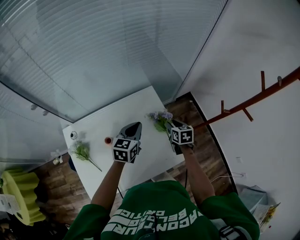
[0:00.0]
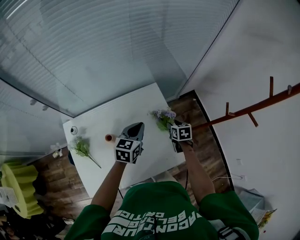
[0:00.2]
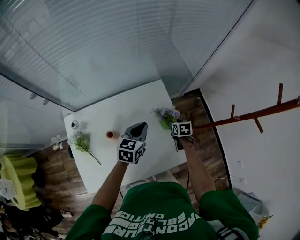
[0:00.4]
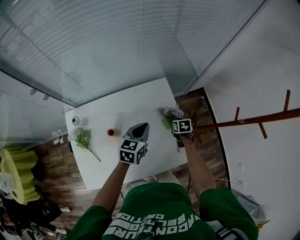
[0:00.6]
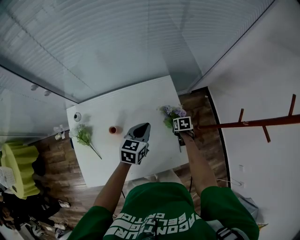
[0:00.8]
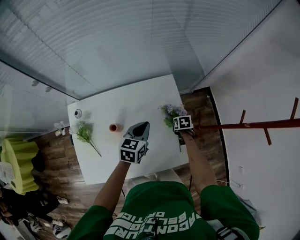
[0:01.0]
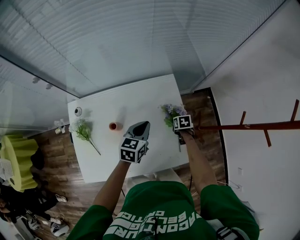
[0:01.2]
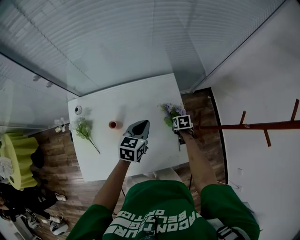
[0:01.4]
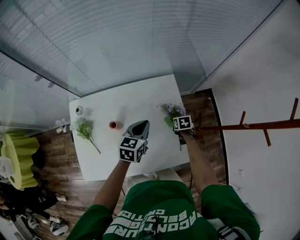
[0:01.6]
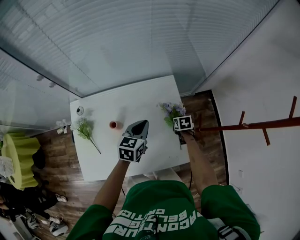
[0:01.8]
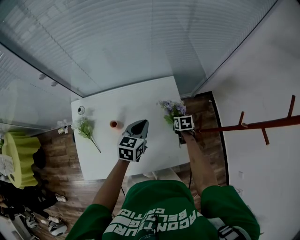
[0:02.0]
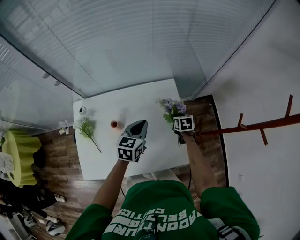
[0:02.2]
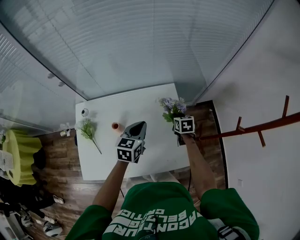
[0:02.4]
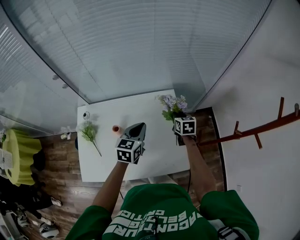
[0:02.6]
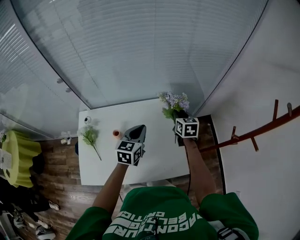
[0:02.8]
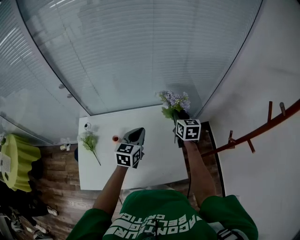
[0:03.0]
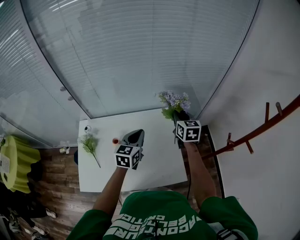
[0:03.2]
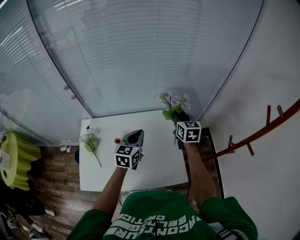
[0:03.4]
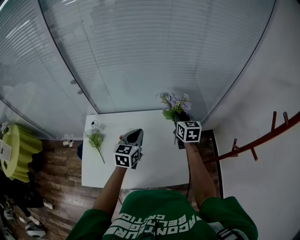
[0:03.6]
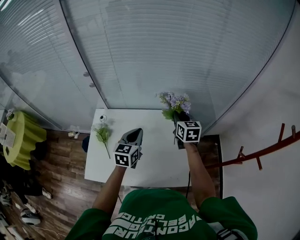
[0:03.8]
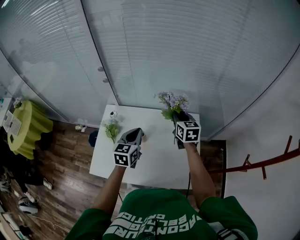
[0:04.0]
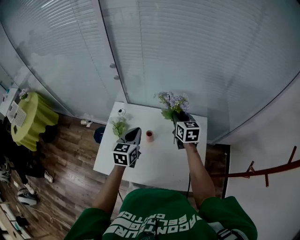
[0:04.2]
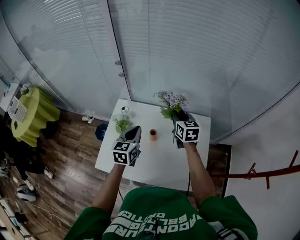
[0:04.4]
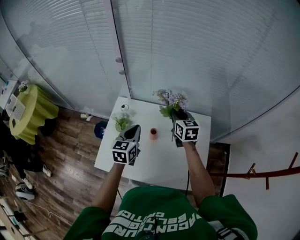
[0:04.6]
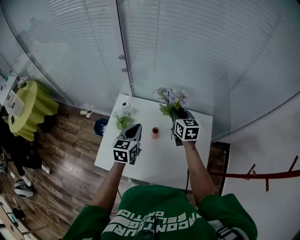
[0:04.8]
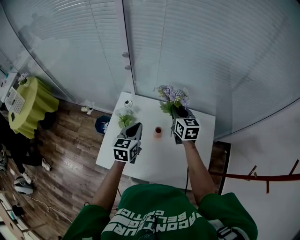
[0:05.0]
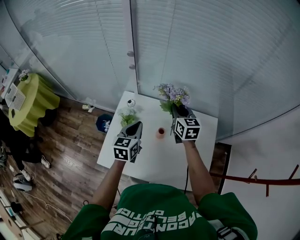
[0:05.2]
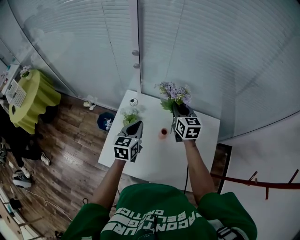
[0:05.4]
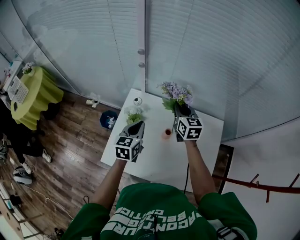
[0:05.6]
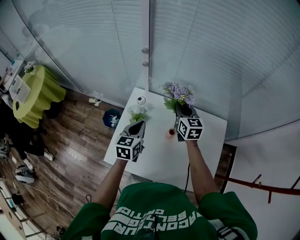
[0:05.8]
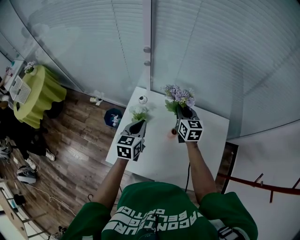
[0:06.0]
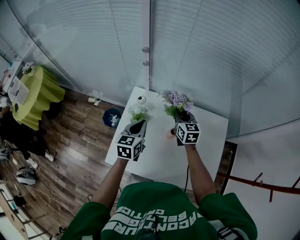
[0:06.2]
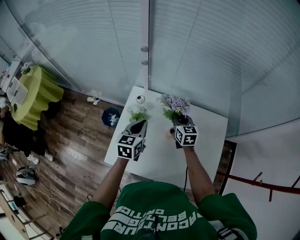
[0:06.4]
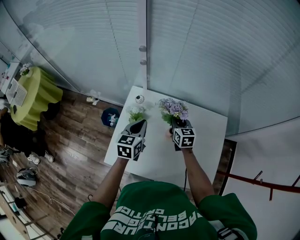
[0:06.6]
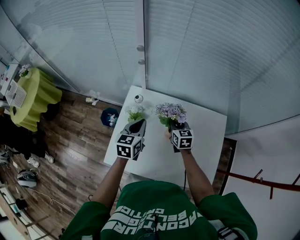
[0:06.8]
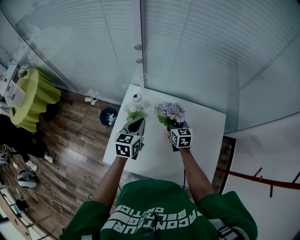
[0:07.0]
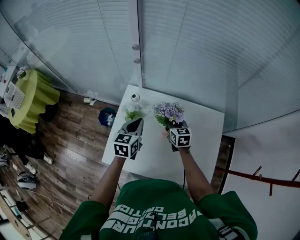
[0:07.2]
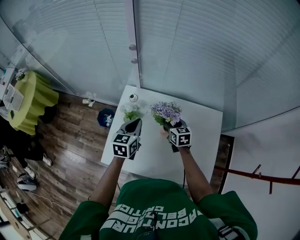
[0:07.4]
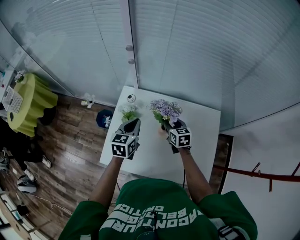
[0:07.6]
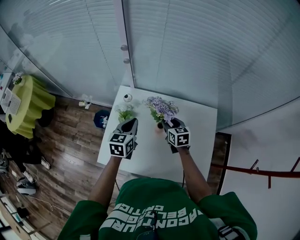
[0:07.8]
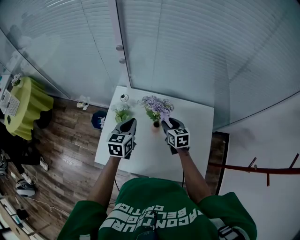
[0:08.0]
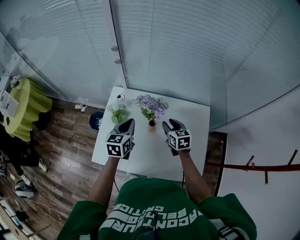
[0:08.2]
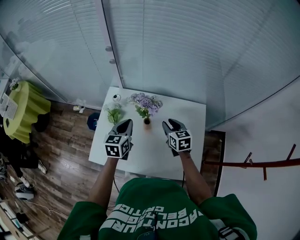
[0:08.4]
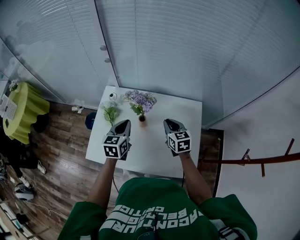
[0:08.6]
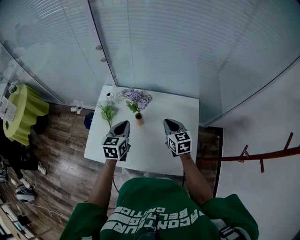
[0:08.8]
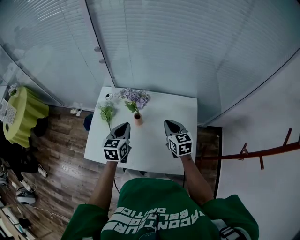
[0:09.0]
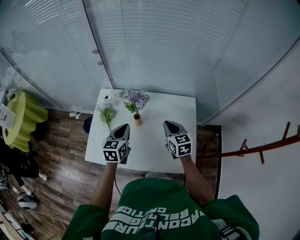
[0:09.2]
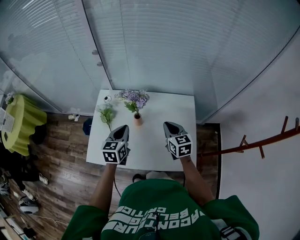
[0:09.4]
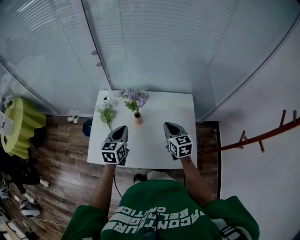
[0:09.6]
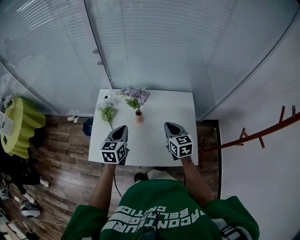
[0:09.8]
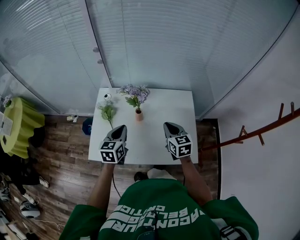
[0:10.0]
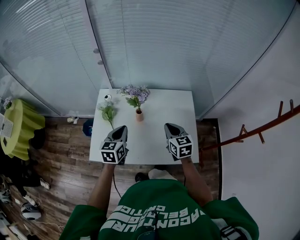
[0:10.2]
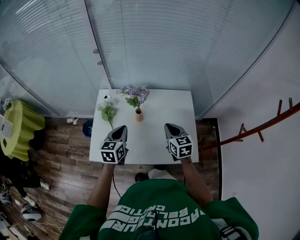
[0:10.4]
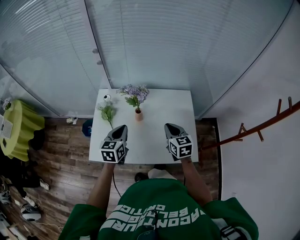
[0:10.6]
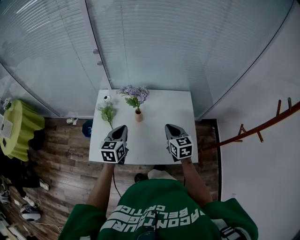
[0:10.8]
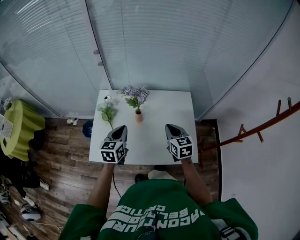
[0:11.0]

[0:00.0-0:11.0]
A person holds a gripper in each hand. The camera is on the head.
0:00.0 to 0:01.6: The right gripper shifts approximately 15 cm downward, and rotates some 20 degrees. Meanwhile the left gripper heads downward, covering about 5 cm.
0:01.6 to 0:03.2: The right gripper heads upward, covering roughly 35 cm, and angles its fingers upward, by approximately 40 degrees. The left gripper shifts approximately 10 cm upward.
0:03.2 to 0:04.8: Both grippers move to the left, some 30 cm. The left gripper swivels about 20 degrees. The right gripper rotates some 20 degrees.
0:04.8 to 0:06.2: The right gripper moves to the left and downward, approximately 10 cm, while the left gripper heads to the left, covering roughly 10 cm.
0:06.2 to 0:07.8: The right gripper travels backward and downward by roughly 10 cm, and opens.
0:07.8 to 0:09.4: The right gripper travels backward, to the right and upward by approximately 20 cm, and closes up, while the left gripper travels backward and to the right by roughly 15 cm.
0:09.4 to 0:11.0: The right gripper travels backward by some 5 cm.

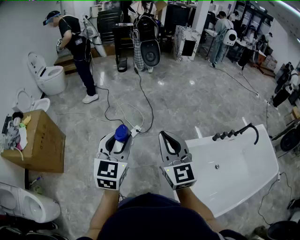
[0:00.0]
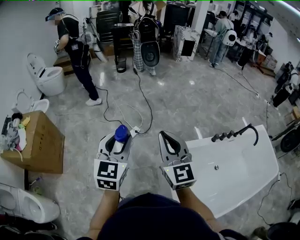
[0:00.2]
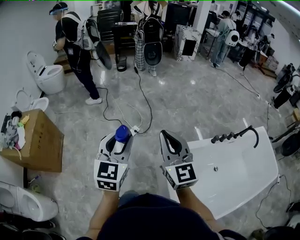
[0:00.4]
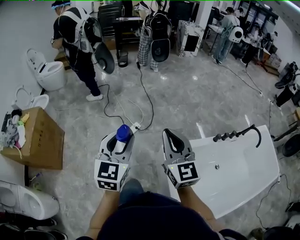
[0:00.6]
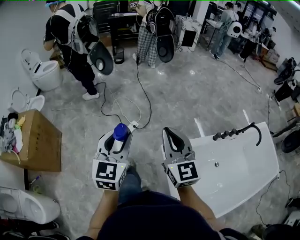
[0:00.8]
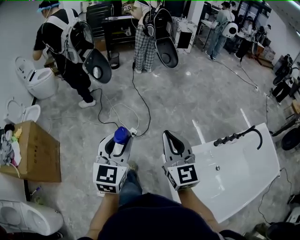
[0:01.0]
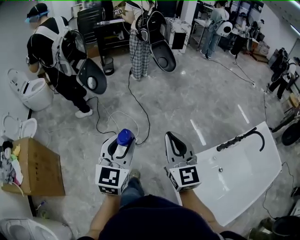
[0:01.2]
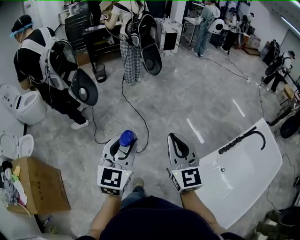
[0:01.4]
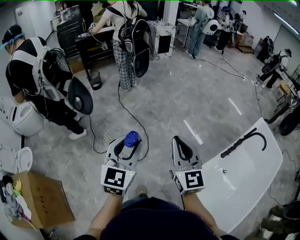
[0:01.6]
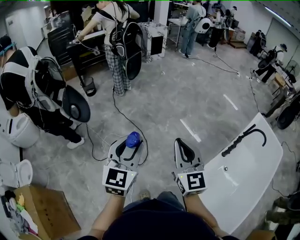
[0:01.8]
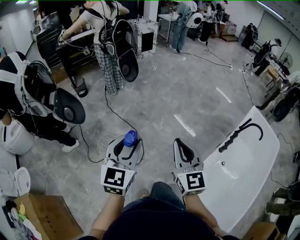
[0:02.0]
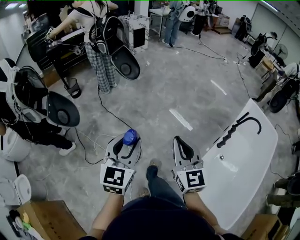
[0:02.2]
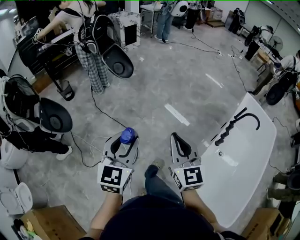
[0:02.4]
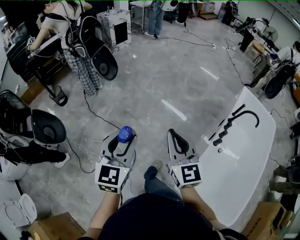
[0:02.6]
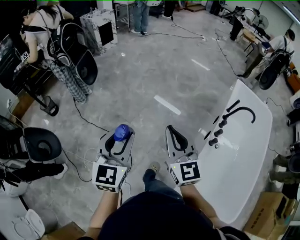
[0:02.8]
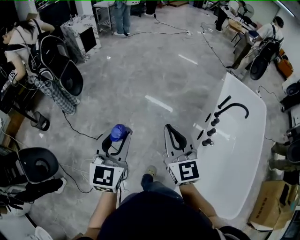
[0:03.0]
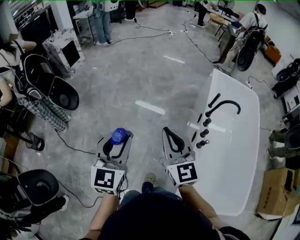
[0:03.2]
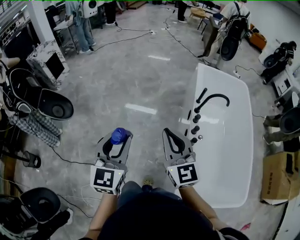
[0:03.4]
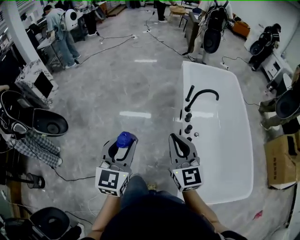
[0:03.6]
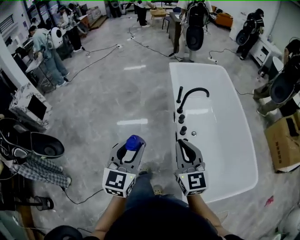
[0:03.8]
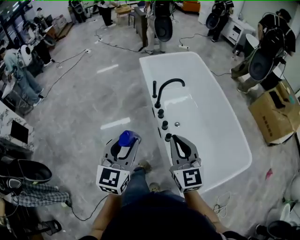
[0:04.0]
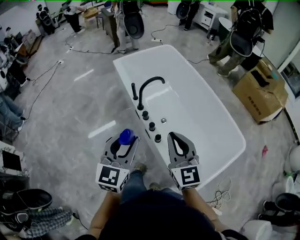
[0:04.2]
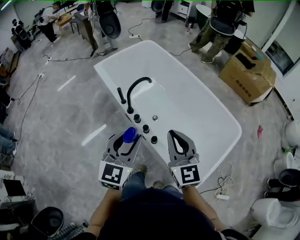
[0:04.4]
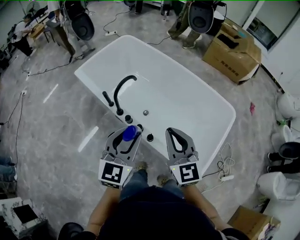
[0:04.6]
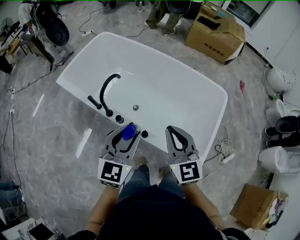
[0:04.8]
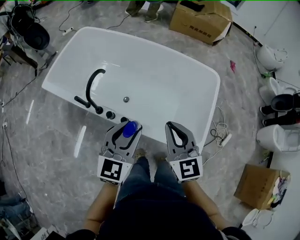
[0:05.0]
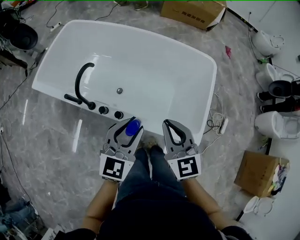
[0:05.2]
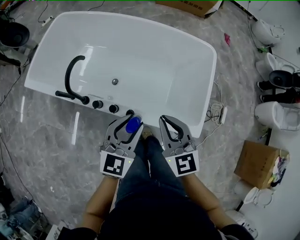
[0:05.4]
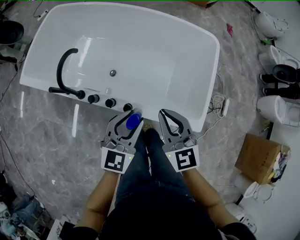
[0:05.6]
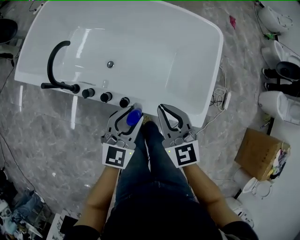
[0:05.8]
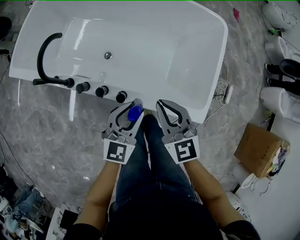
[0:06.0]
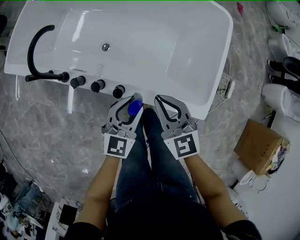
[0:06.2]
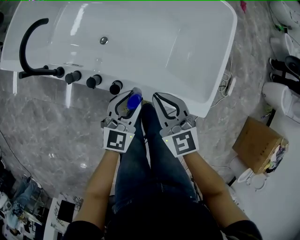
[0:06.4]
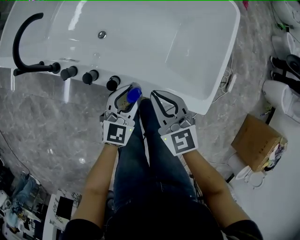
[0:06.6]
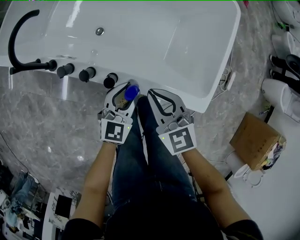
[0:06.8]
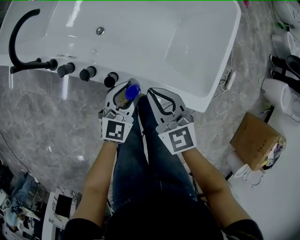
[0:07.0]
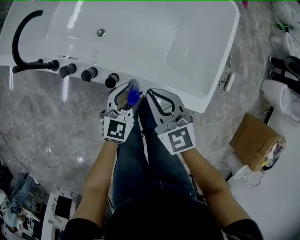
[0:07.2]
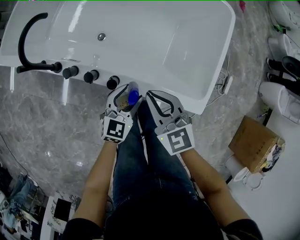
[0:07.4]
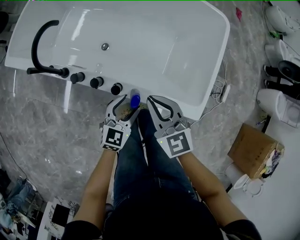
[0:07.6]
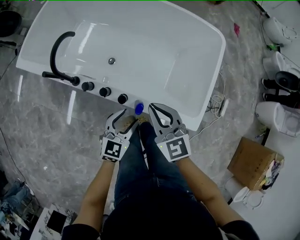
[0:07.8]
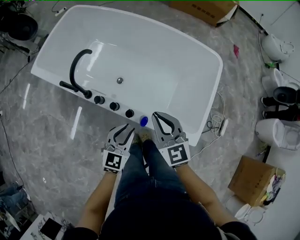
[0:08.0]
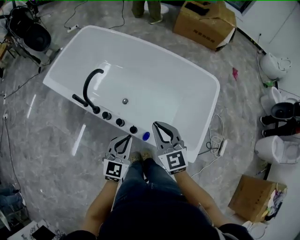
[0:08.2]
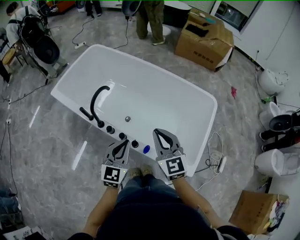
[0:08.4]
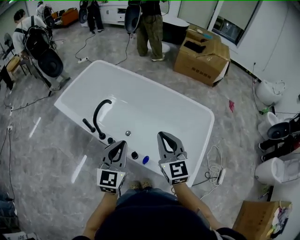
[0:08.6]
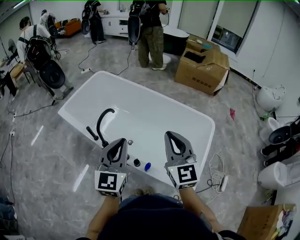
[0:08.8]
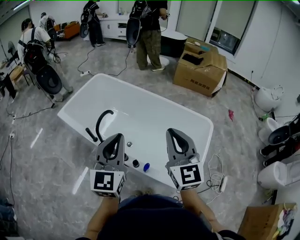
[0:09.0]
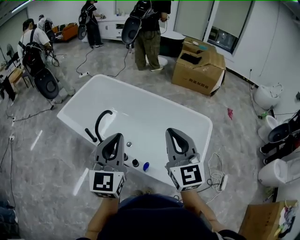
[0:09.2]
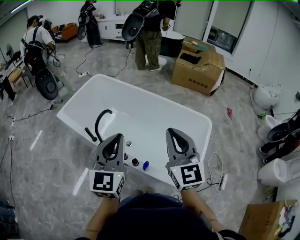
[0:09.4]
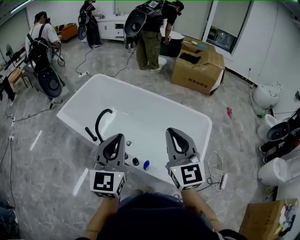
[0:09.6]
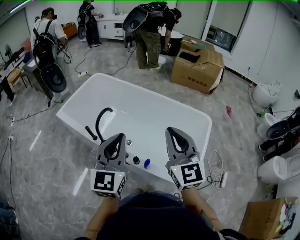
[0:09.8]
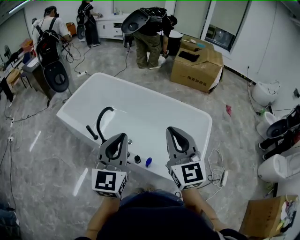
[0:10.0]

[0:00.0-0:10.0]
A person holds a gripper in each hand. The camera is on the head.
0:00.0 to 0:01.4: Both grippers move forward, roughly 30 cm.
0:01.4 to 0:02.8: The left gripper moves about 35 cm, and swivels roughly 30 degrees. Meanwhile the right gripper changes place by approximately 30 cm, and swivels some 30 degrees.
0:02.8 to 0:04.2: Both grippers are carried about 40 cm. The right gripper rotates roughly 70 degrees. Meanwhile the left gripper rotates about 70 degrees.
0:04.2 to 0:05.8: The two grippers go approximately 20 cm downward. The left gripper turns by approximately 60 degrees. The right gripper turns by some 40 degrees.
0:05.8 to 0:07.2: Both grippers travel together downward, approximately 15 cm.
0:07.2 to 0:08.6: Both grippers move upward, roughly 35 cm. The left gripper turns by approximately 30 degrees, and closes. The right gripper turns by approximately 30 degrees.
0:08.6 to 0:10.0: The right gripper is displaced upward and backward by about 15 cm. The left gripper moves upward, about 10 cm.

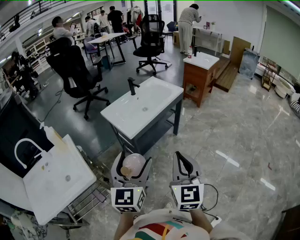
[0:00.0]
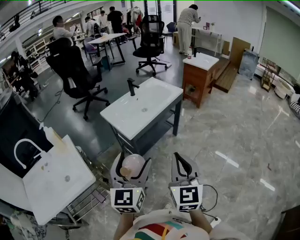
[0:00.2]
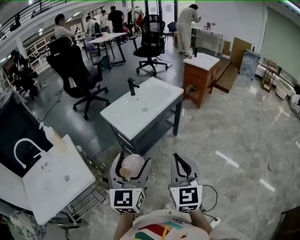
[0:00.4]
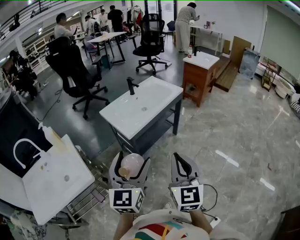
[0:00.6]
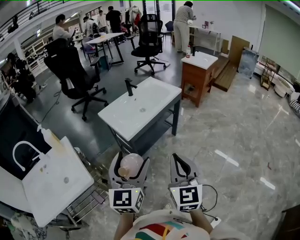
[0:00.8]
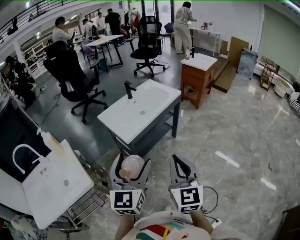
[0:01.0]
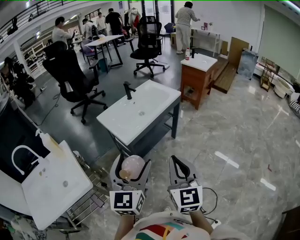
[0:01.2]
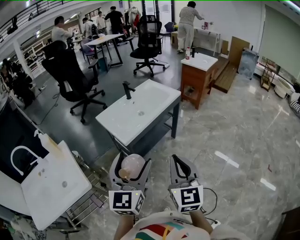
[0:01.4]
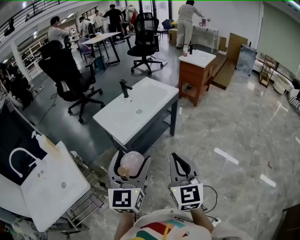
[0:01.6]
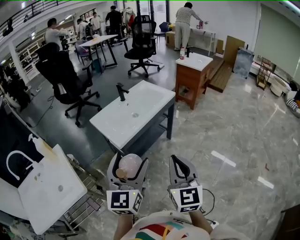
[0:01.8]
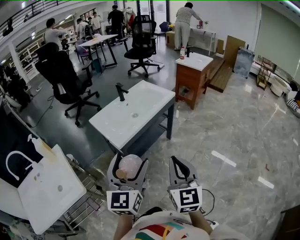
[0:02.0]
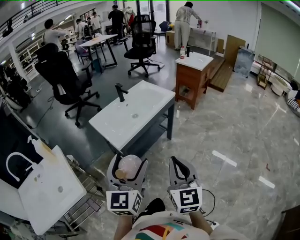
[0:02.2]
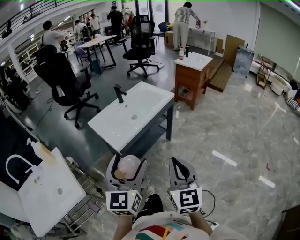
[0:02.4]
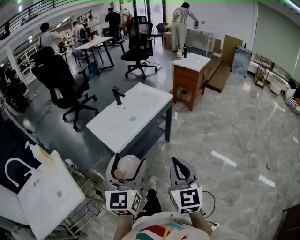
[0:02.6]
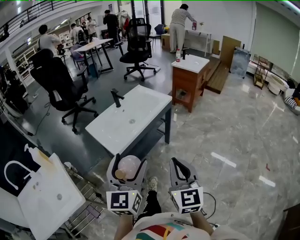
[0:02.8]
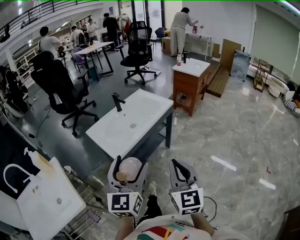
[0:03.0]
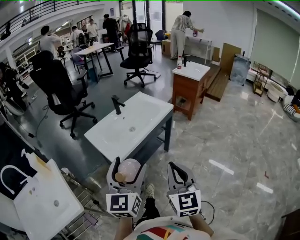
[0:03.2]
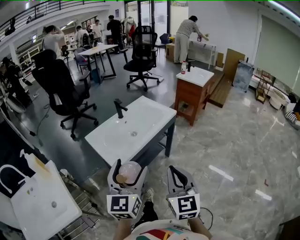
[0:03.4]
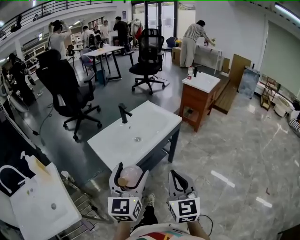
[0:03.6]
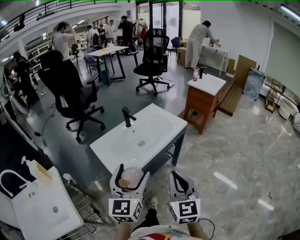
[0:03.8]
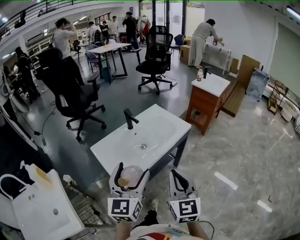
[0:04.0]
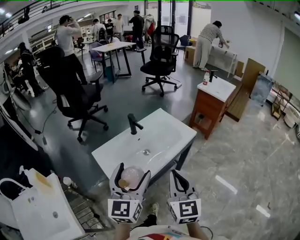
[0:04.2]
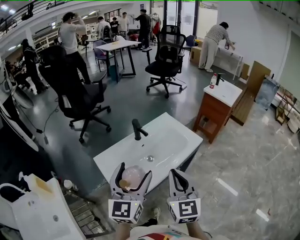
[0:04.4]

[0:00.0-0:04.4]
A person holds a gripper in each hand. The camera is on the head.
0:00.0 to 0:01.4: The grippers move only a little.
0:01.4 to 0:03.0: The two grippers go some 10 cm forward.
0:03.0 to 0:04.4: Both grippers travel together forward, about 30 cm.
